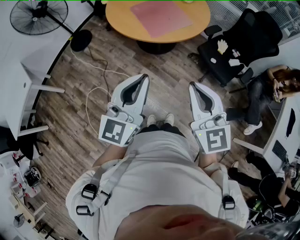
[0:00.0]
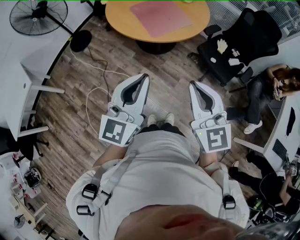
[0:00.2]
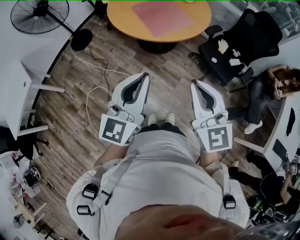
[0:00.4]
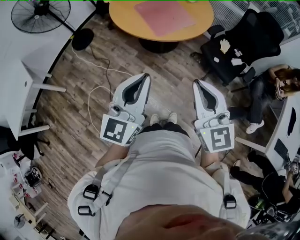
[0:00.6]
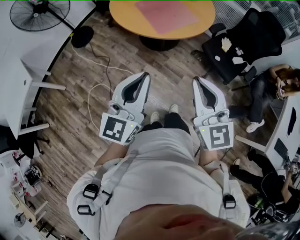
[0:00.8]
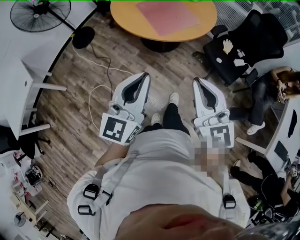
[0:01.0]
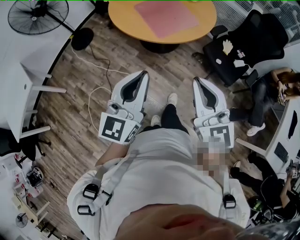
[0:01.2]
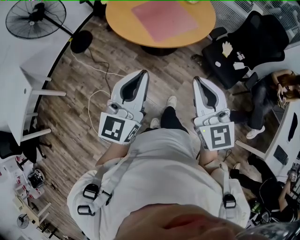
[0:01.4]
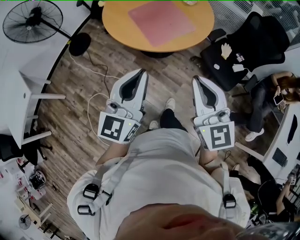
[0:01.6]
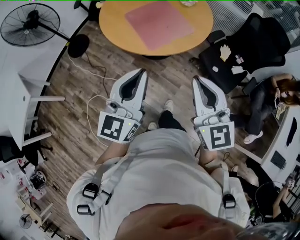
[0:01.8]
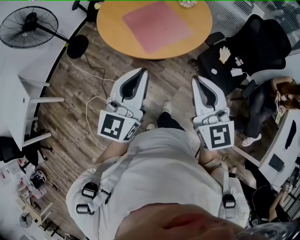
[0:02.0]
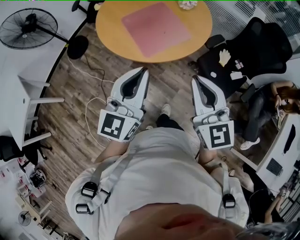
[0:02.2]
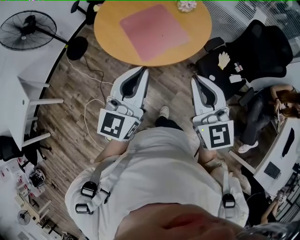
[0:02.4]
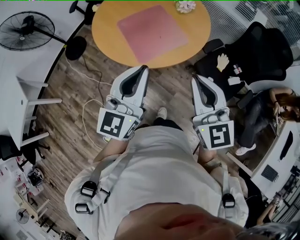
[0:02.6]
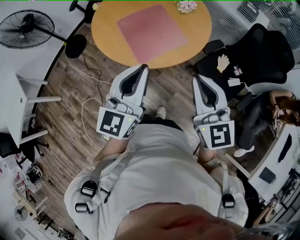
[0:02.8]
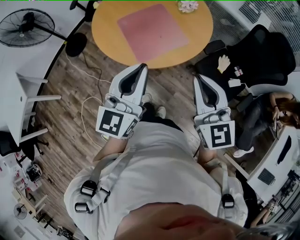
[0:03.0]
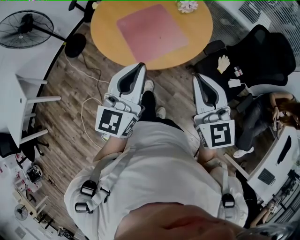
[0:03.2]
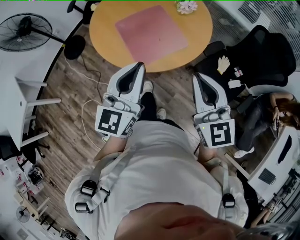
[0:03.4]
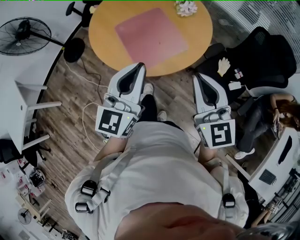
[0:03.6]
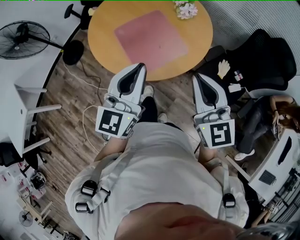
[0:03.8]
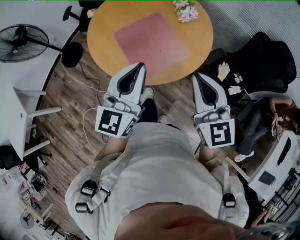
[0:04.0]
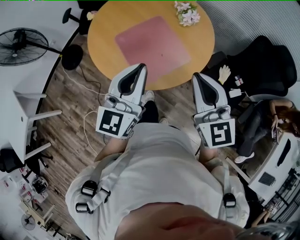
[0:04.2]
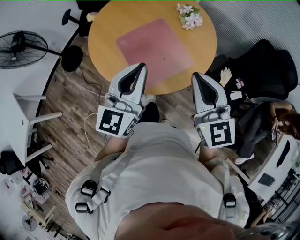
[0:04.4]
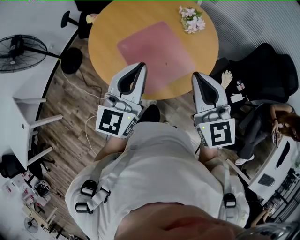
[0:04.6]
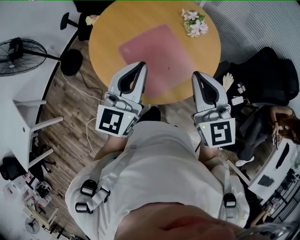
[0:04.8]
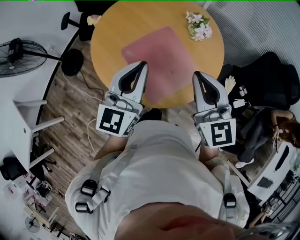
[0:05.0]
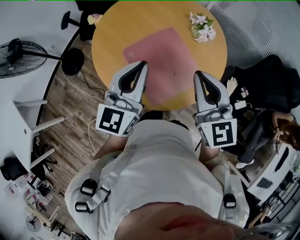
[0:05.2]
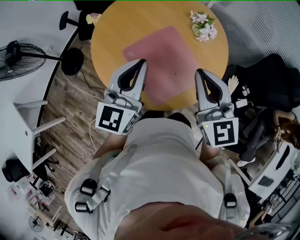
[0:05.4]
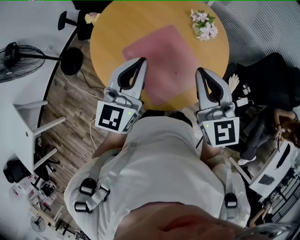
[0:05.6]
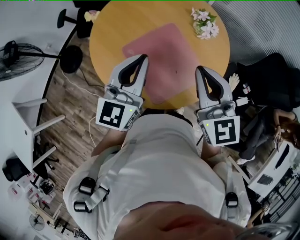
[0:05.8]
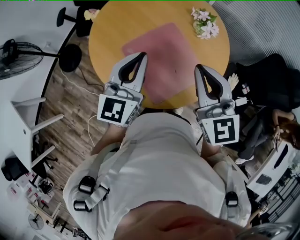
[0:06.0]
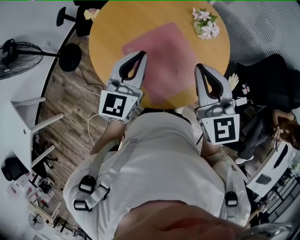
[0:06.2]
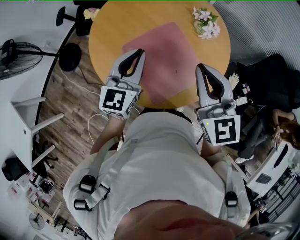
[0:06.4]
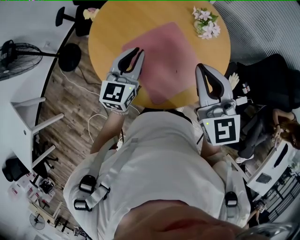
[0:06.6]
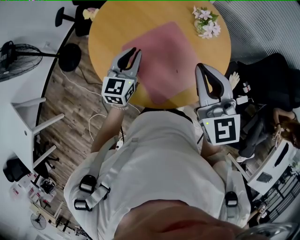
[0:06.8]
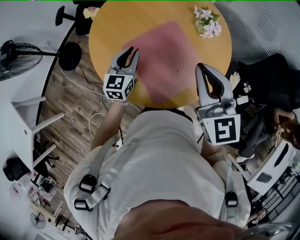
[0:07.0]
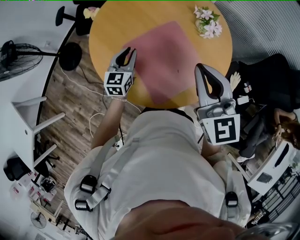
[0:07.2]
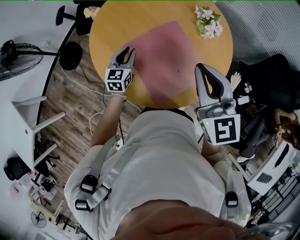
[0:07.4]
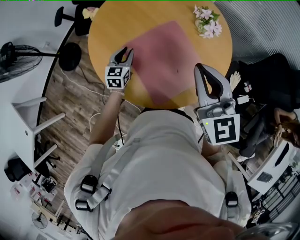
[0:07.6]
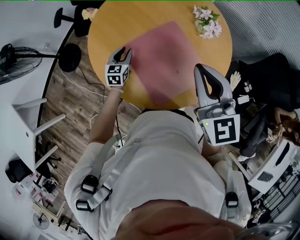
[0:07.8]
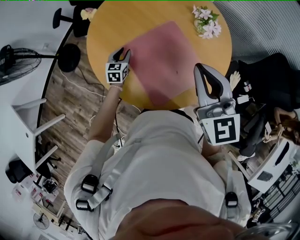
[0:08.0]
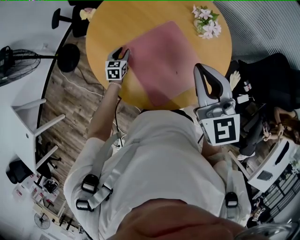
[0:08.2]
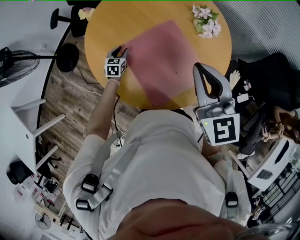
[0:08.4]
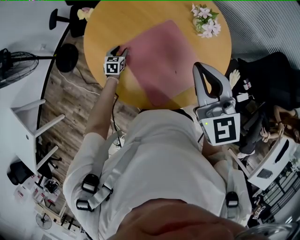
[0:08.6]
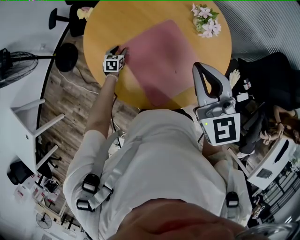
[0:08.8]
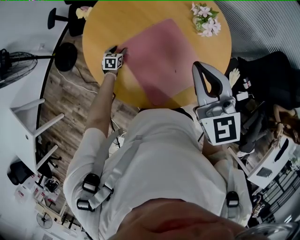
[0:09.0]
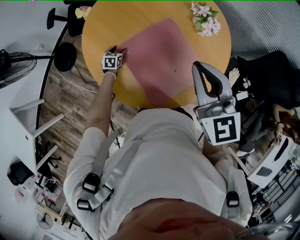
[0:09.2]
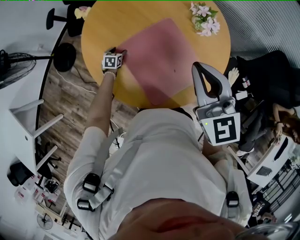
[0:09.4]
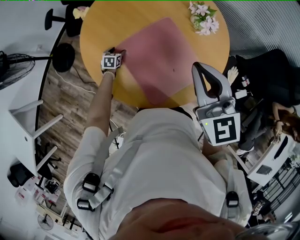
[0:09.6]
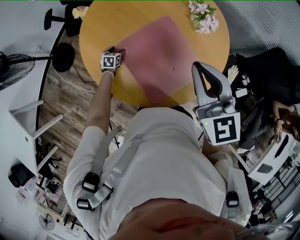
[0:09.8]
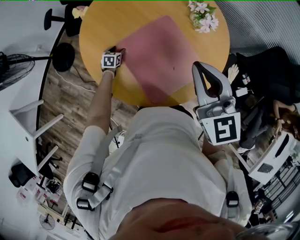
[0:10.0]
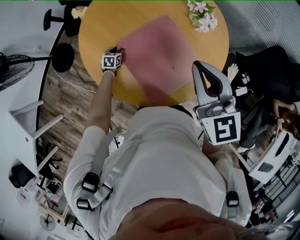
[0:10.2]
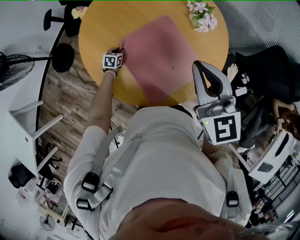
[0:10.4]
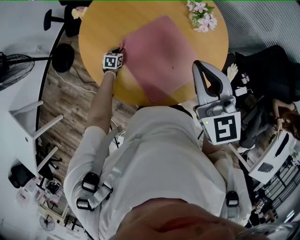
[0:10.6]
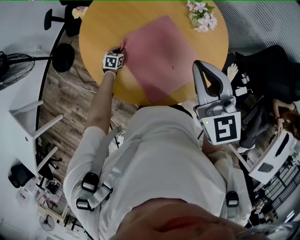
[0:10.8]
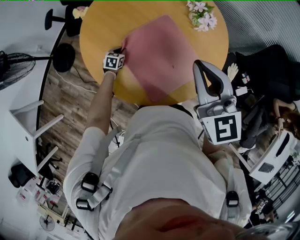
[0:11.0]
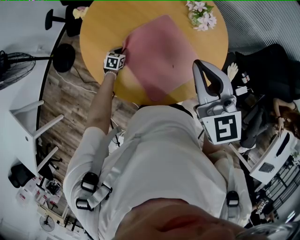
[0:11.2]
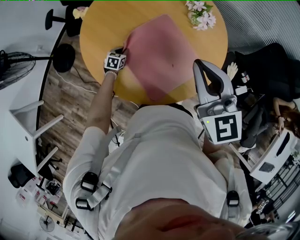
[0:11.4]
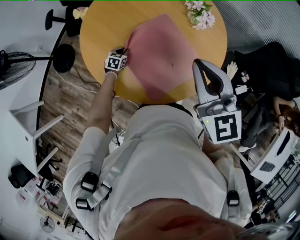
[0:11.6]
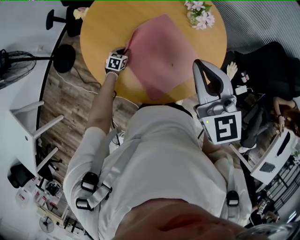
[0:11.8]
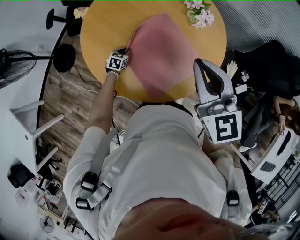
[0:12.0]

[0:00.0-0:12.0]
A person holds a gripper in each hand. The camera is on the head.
0.0 to 1.6 s: The grippers both shift forward by approximately 15 cm.
1.6 to 3.0 s: The two grippers go approximately 20 cm forward and to the right.
3.0 to 4.4 s: The grippers both shift forward by roughly 20 cm.
4.4 to 6.0 s: The two grippers go approximately 20 cm forward and to the left.
6.0 to 7.6 s: The left gripper is displaced downward by approximately 25 cm, rotates about 30 degrees, and opens.
7.6 to 9.0 s: The left gripper heads downward, covering roughly 20 cm, swivels about 20 degrees, and opens its fingers.
9.0 to 10.4 s: The left gripper closes its fingers.
10.4 to 12.0 s: The left gripper changes place by some 5 cm.

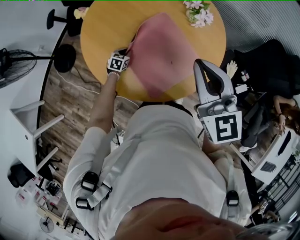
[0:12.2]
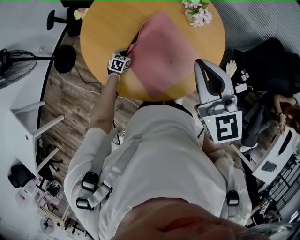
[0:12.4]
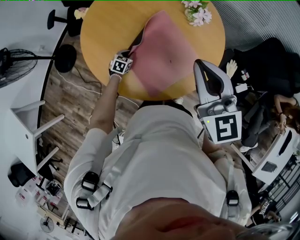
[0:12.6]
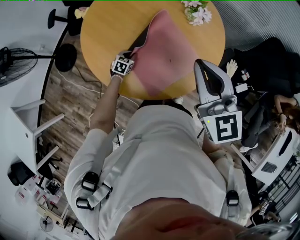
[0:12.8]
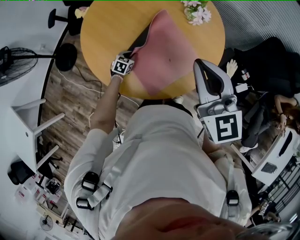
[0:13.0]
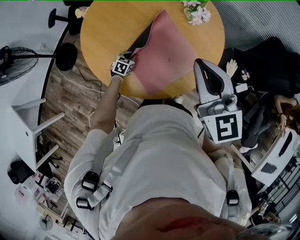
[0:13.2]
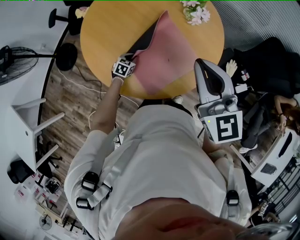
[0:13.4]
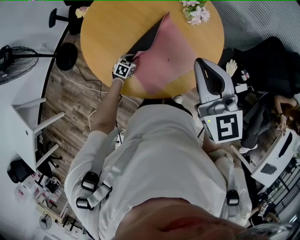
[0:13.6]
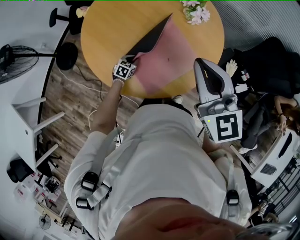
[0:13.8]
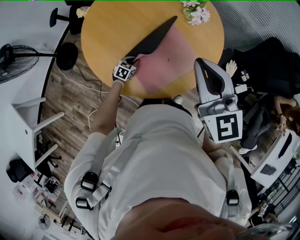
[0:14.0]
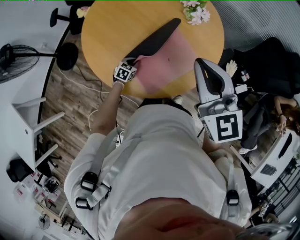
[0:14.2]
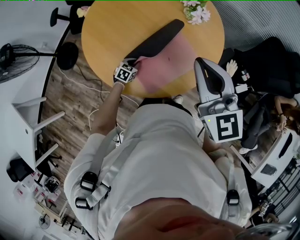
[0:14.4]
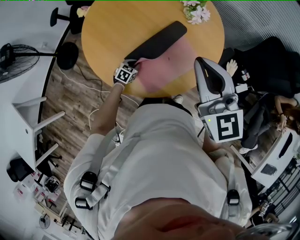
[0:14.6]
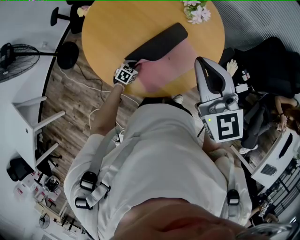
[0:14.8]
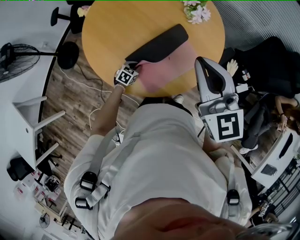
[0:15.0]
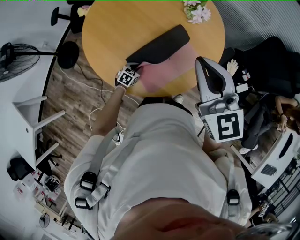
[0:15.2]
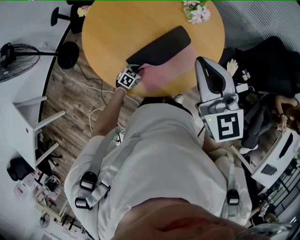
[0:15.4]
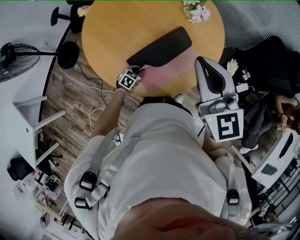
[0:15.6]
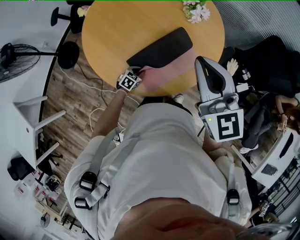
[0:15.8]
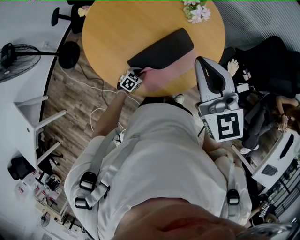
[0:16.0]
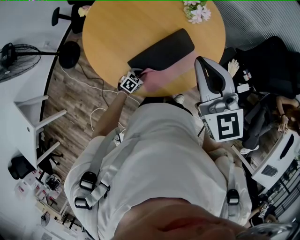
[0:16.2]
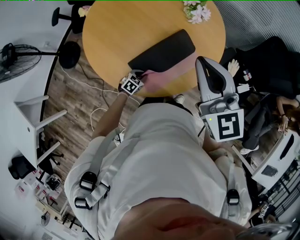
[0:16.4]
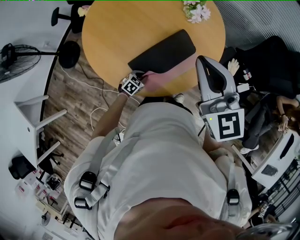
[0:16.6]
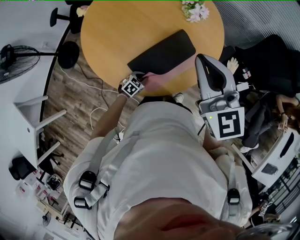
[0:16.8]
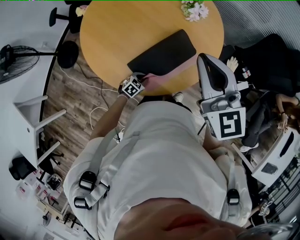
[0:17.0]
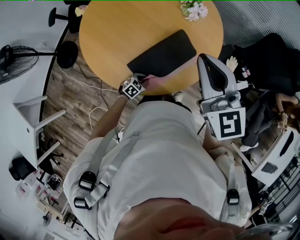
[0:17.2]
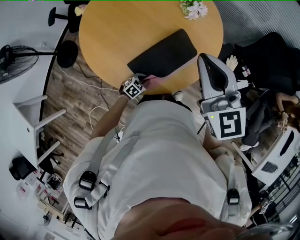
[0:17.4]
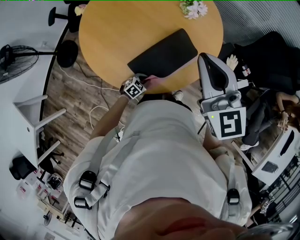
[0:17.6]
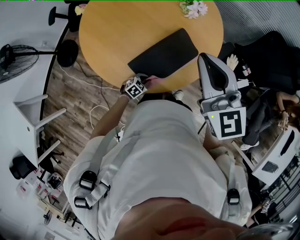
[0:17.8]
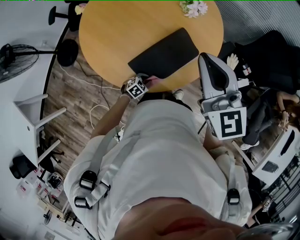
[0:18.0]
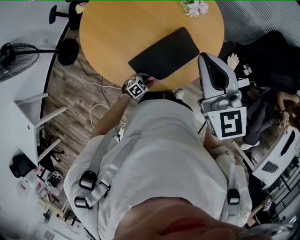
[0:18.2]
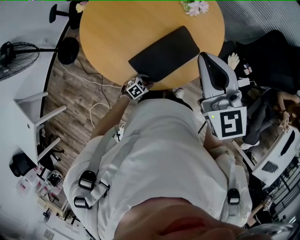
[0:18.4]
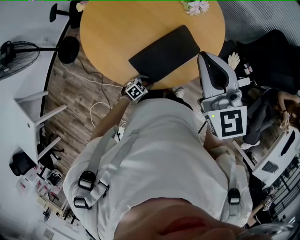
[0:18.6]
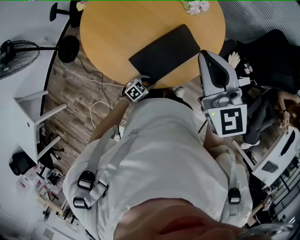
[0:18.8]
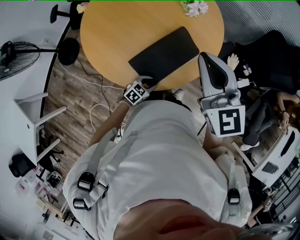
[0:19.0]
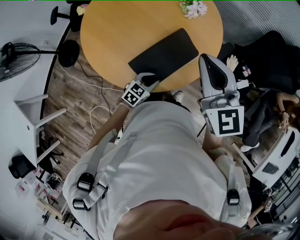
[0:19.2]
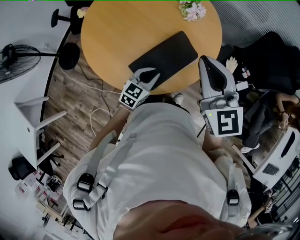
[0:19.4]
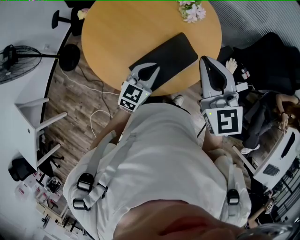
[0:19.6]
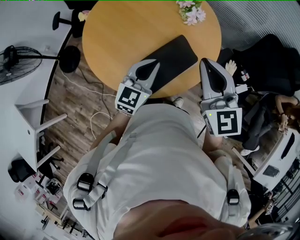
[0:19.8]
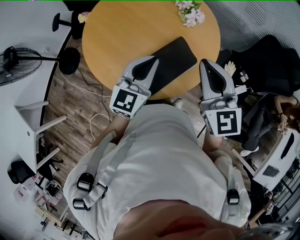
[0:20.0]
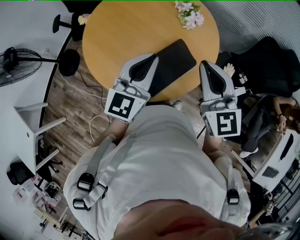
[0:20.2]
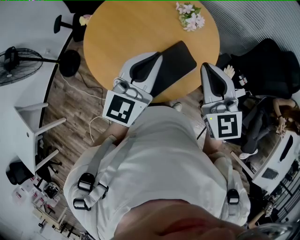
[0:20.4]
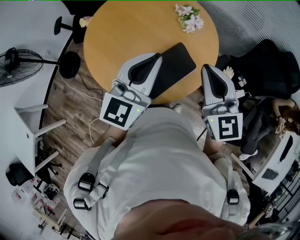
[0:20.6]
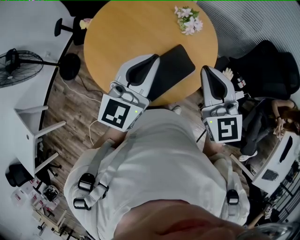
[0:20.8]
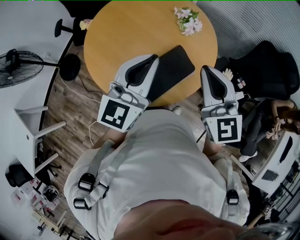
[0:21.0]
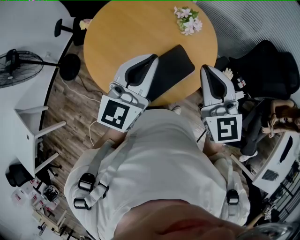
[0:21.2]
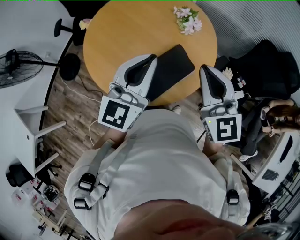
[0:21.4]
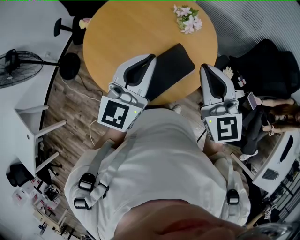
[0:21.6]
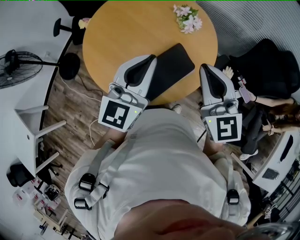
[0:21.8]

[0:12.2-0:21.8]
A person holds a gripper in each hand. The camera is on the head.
12.2 to 13.8 s: The left gripper travels to the right and backward by approximately 10 cm.
13.8 to 15.4 s: The left gripper travels backward by some 5 cm.
15.4 to 17.0 s: The left gripper goes some 5 cm to the right.
17.0 to 18.6 s: The left gripper is displaced backward and to the right by some 5 cm.
18.6 to 20.2 s: The left gripper is displaced upward by about 50 cm, points its fingers roughly 50 degrees further upward, and closes up.

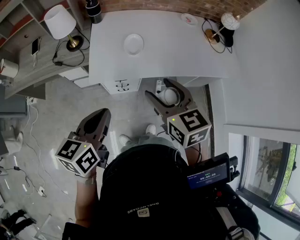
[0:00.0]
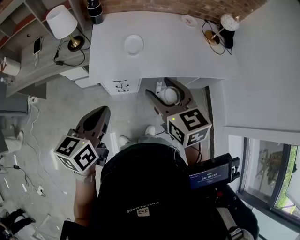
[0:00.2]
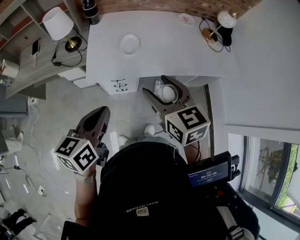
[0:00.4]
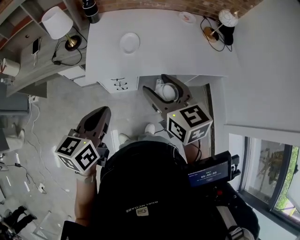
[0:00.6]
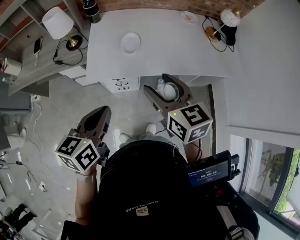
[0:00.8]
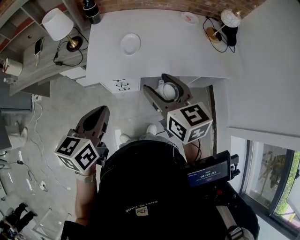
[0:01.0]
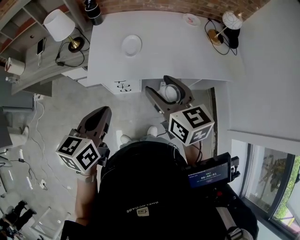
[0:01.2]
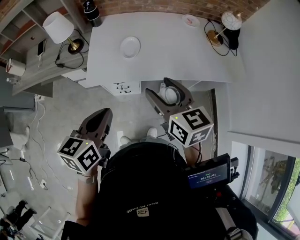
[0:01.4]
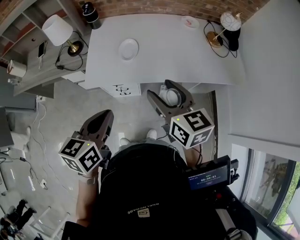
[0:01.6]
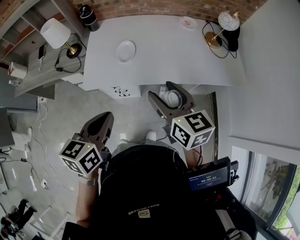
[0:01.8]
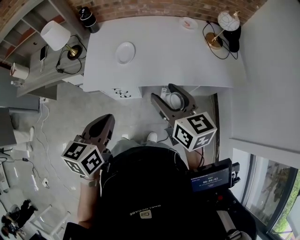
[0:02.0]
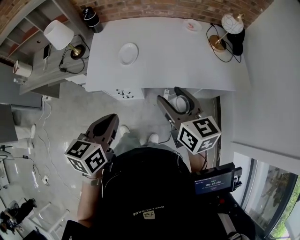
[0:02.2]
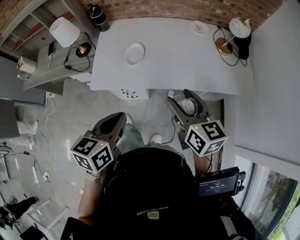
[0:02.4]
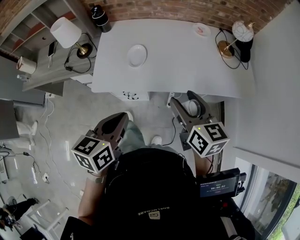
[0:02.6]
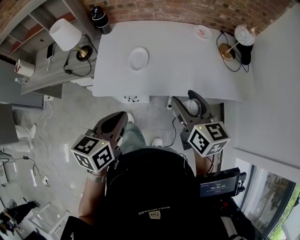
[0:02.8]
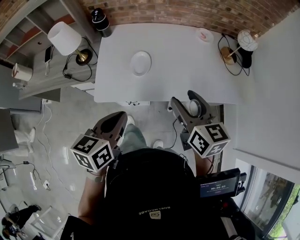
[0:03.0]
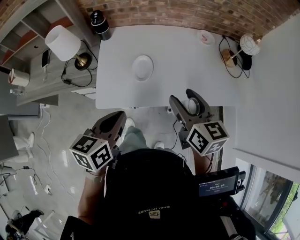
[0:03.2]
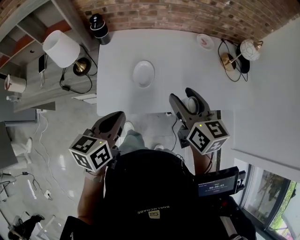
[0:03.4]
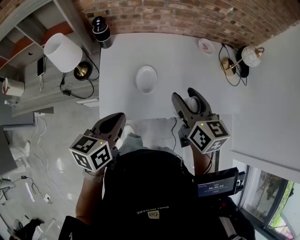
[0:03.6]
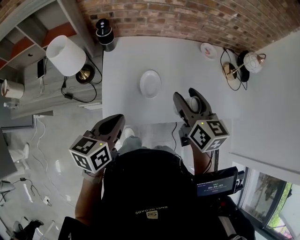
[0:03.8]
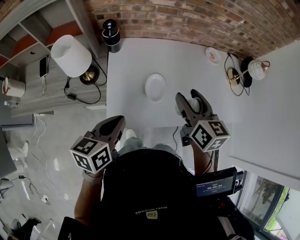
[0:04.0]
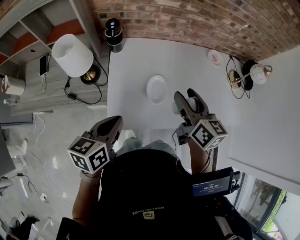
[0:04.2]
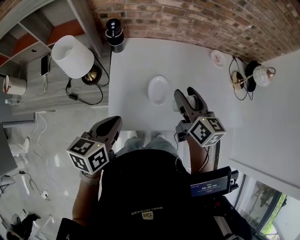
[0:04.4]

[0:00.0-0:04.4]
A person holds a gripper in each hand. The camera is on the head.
0.0 to 1.4 s: Both grippers move to the right, some 10 cm.
1.4 to 3.0 s: The grippers both shift forward by some 10 cm.
3.0 to 4.4 s: The left gripper shifts approximately 20 cm to the left and forward. The right gripper shifts approximately 25 cm forward and to the left.
